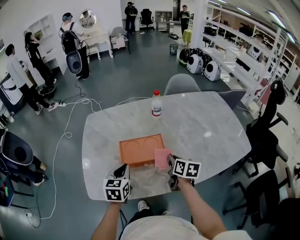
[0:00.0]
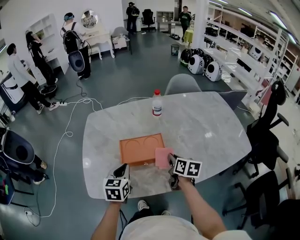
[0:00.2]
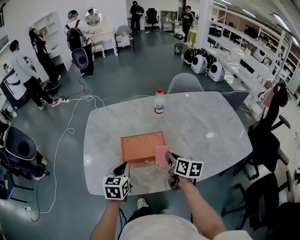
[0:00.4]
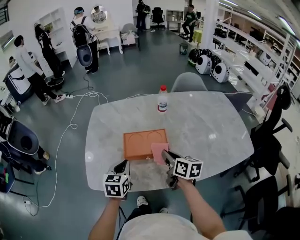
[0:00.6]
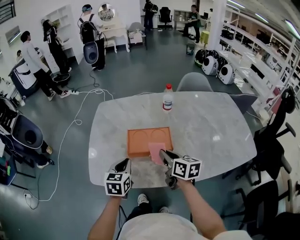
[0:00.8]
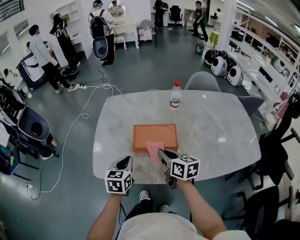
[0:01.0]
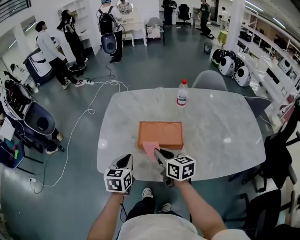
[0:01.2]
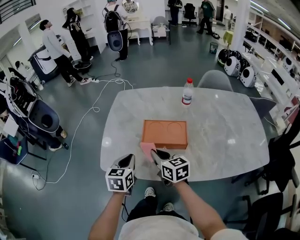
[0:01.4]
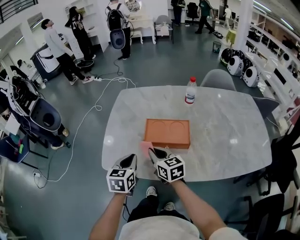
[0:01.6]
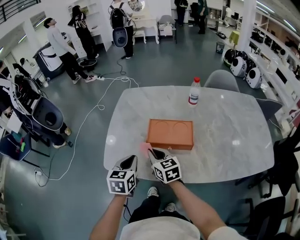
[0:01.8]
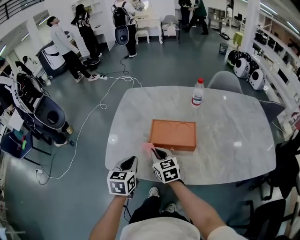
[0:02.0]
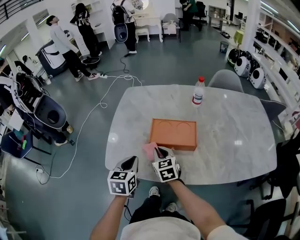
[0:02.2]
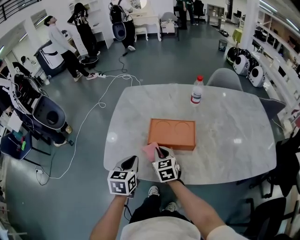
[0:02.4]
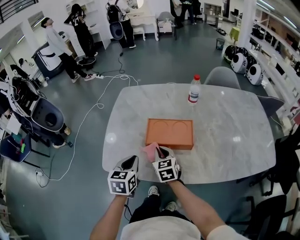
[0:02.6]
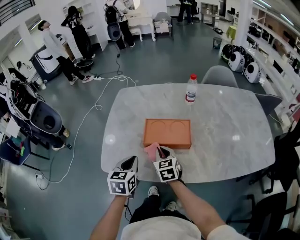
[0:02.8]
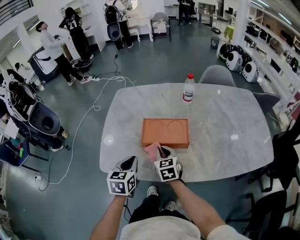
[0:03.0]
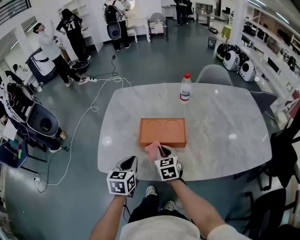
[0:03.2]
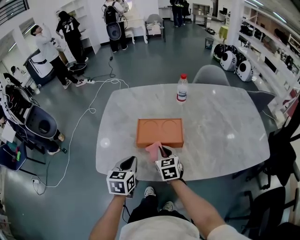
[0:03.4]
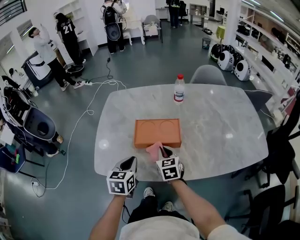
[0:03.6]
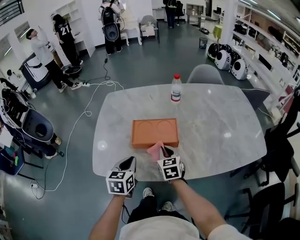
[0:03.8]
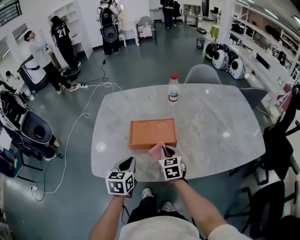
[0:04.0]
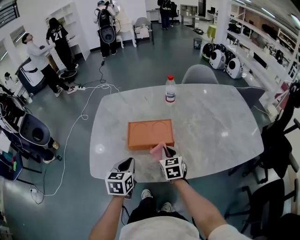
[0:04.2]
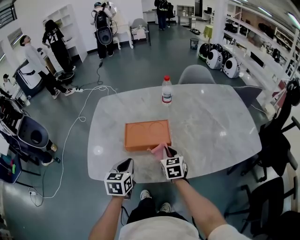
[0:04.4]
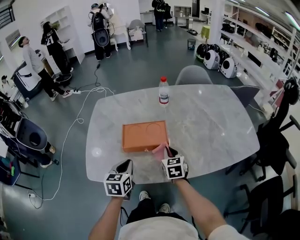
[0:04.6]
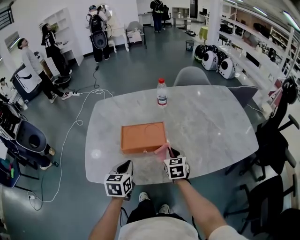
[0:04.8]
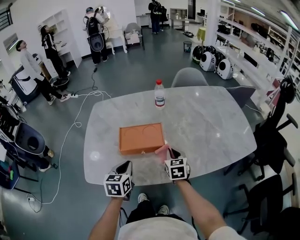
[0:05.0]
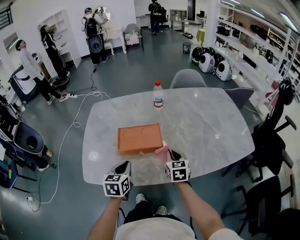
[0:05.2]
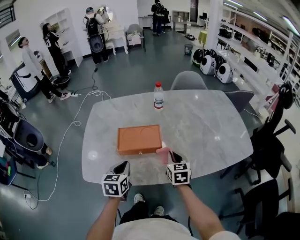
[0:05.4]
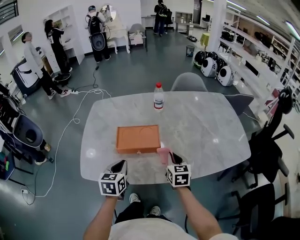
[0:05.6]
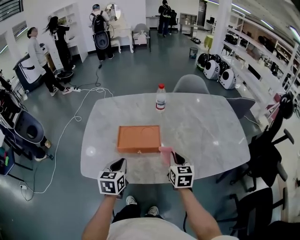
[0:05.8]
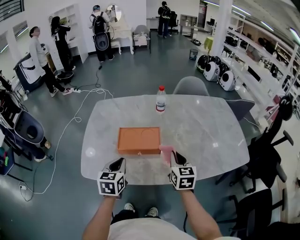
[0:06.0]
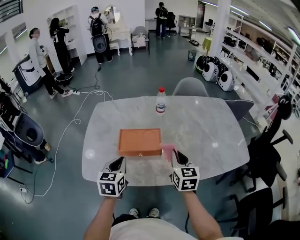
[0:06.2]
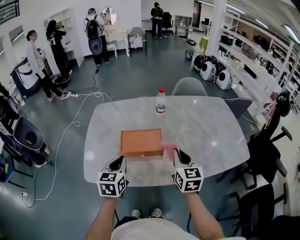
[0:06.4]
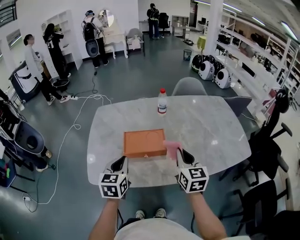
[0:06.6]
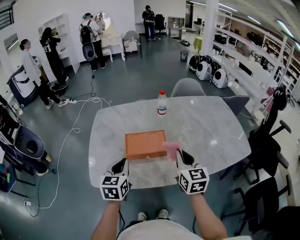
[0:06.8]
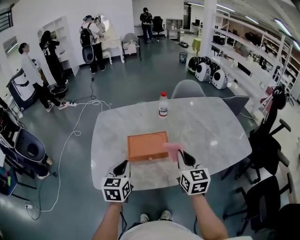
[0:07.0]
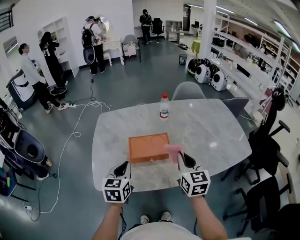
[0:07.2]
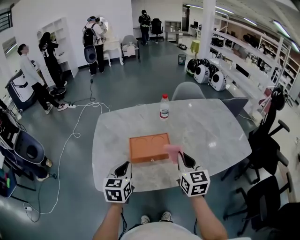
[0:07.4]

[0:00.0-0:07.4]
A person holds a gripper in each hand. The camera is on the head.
0:00.0 to 0:01.4: The right gripper goes approximately 20 cm to the left, and changes its angle by roughly 40 degrees. The left gripper moves backward and to the left, roughly 10 cm.
0:01.4 to 0:03.0: The right gripper goes approximately 5 cm downward, and turns by roughly 30 degrees.
0:03.0 to 0:04.4: The left gripper travels to the right by about 5 cm. The right gripper goes about 10 cm to the right.
0:04.4 to 0:06.0: The left gripper shifts by about 5 cm, while the right gripper shifts roughly 15 cm upward and to the right.
0:06.0 to 0:07.4: The right gripper heads upward and to the left, covering roughly 10 cm. Meanwhile the left gripper shifts about 5 cm to the left.

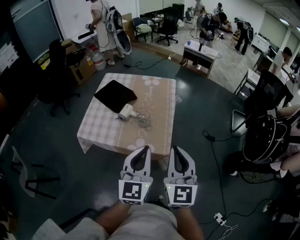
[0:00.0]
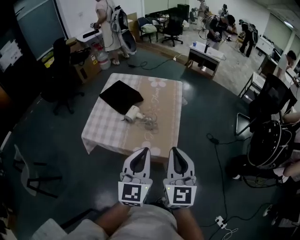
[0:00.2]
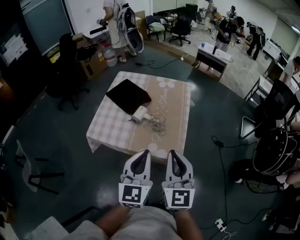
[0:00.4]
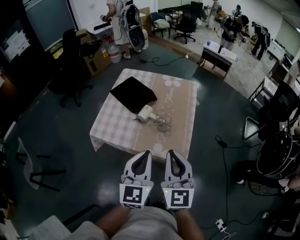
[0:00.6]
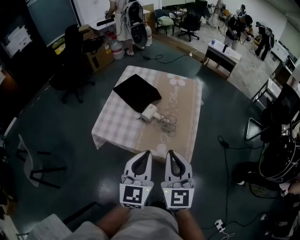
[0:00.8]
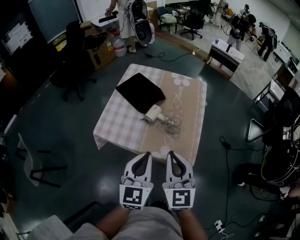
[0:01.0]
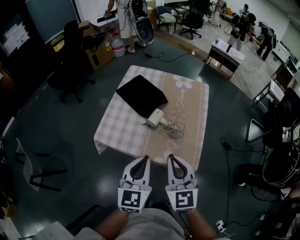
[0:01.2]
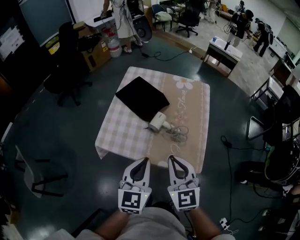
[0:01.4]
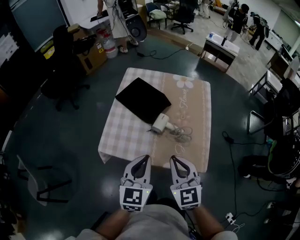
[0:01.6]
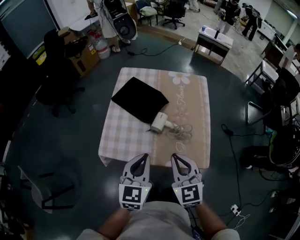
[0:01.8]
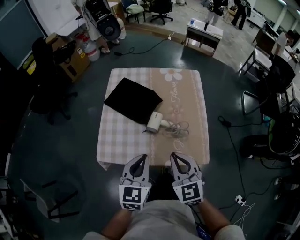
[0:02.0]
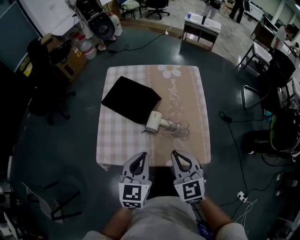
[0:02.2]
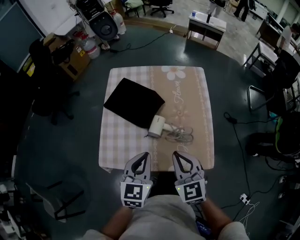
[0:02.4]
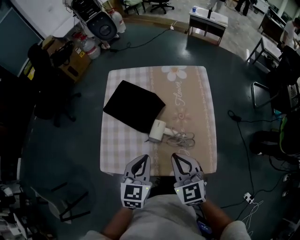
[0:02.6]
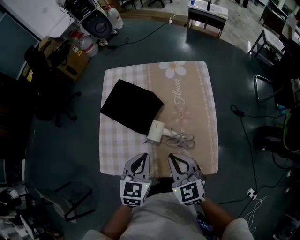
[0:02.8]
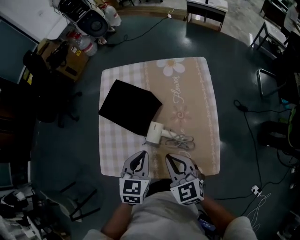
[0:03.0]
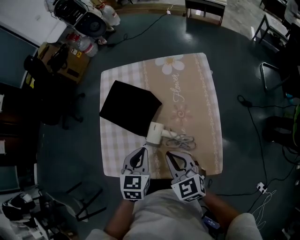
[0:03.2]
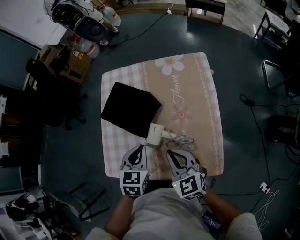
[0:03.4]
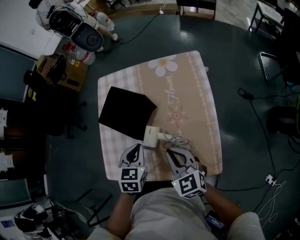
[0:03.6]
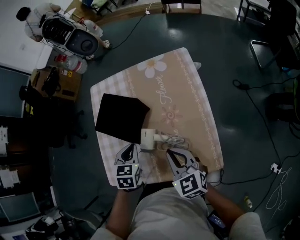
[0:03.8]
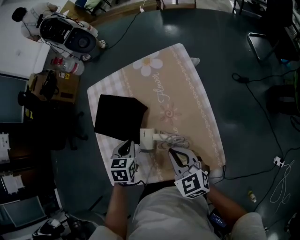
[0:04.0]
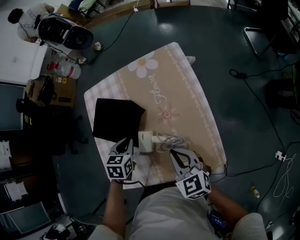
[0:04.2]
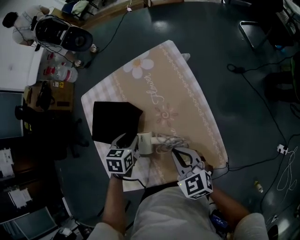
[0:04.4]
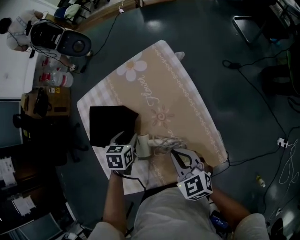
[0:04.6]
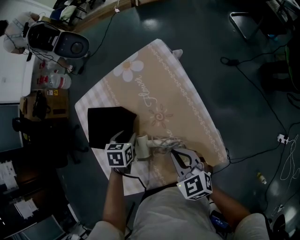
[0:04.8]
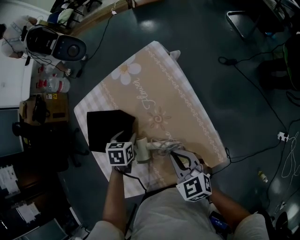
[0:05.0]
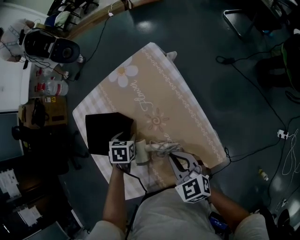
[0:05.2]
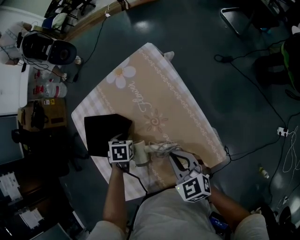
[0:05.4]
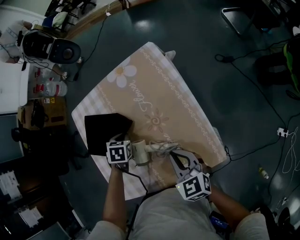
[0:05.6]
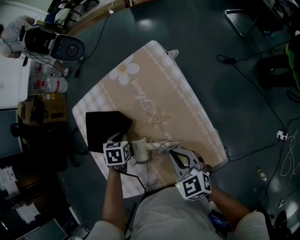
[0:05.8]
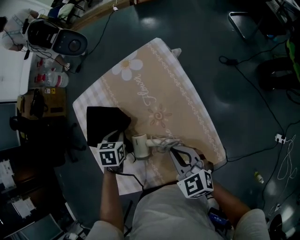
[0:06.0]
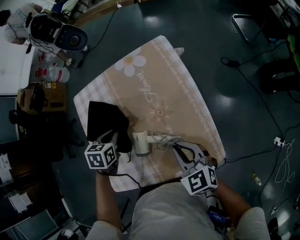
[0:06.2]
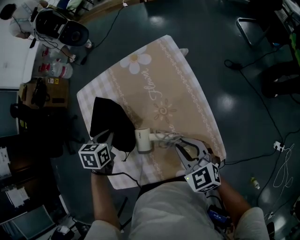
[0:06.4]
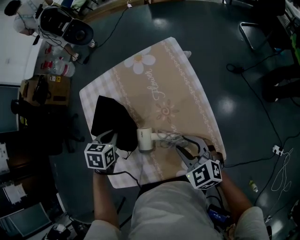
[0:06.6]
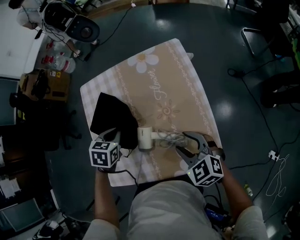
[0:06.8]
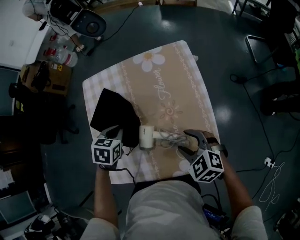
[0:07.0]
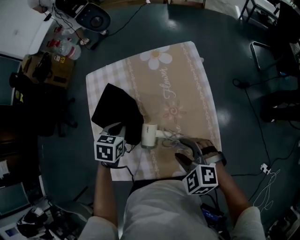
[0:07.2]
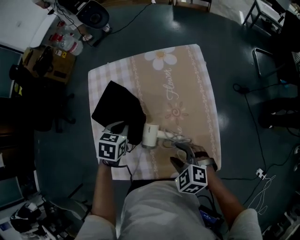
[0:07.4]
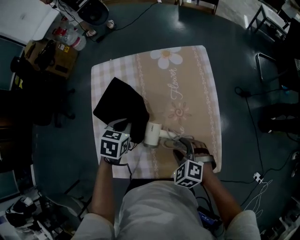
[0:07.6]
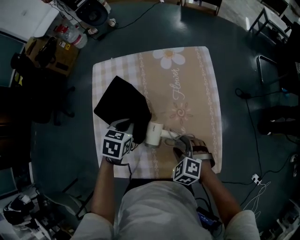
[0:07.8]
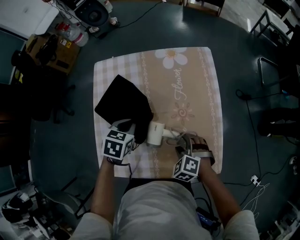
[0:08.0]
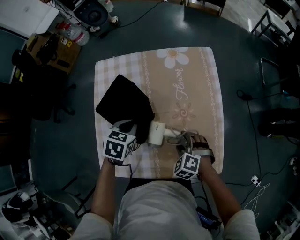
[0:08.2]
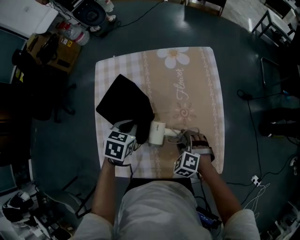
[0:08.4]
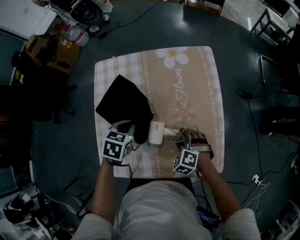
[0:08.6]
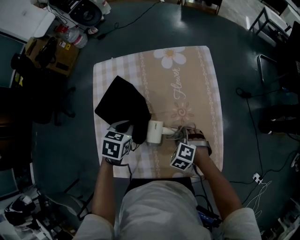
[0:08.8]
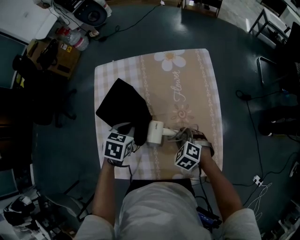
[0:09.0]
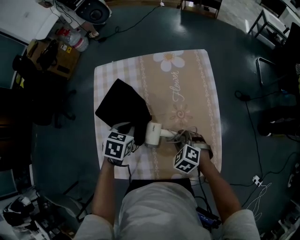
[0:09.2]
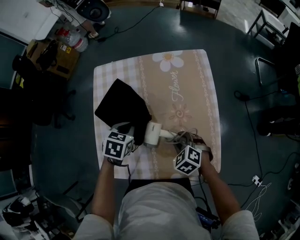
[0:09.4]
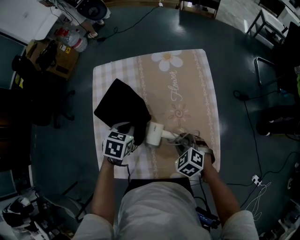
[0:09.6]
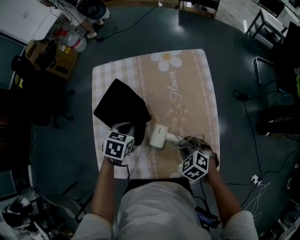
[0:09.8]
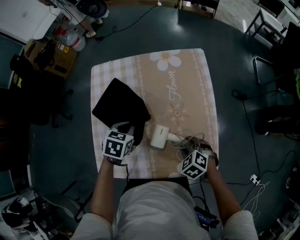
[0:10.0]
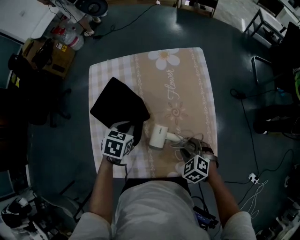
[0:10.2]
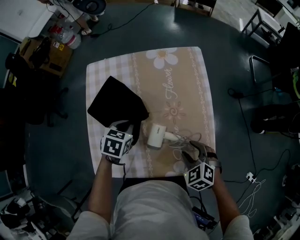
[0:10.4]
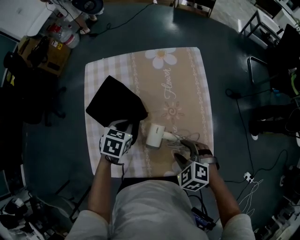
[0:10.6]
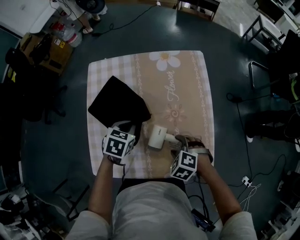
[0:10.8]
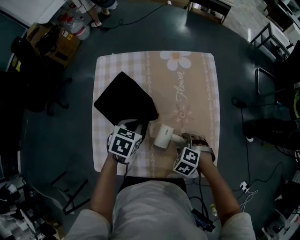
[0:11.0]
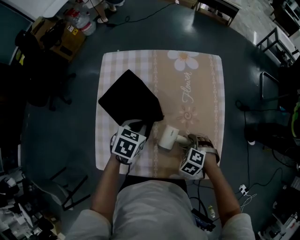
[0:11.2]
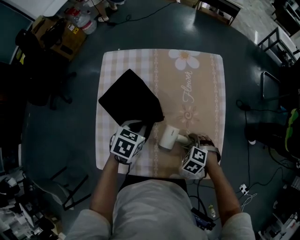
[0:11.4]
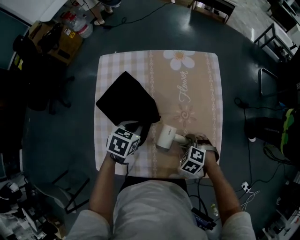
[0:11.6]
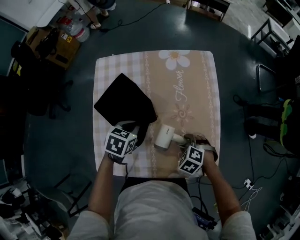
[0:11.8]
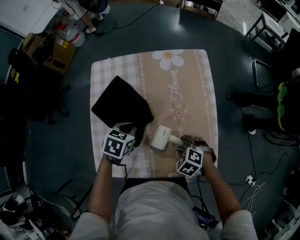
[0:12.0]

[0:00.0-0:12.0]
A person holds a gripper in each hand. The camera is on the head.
0:00.0 to 0:01.6: The left gripper shifts roughly 25 cm to the left and forward. The right gripper heads to the left, forward and downward, covering some 30 cm, and swivels approximately 20 degrees.
0:01.6 to 0:03.0: The grippers both shift forward and downward by roughly 20 cm. The left gripper changes its angle by roughly 20 degrees.
0:03.0 to 0:04.4: The left gripper is displaced forward and downward by about 15 cm, changes its angle by approximately 30 degrees, and opens; the right gripper moves to the right and downward, some 10 cm.
0:04.4 to 0:06.0: The left gripper closes its fingers.
0:06.0 to 0:07.6: The left gripper moves approximately 5 cm, while the right gripper is displaced downward and to the left by about 10 cm, swivels approximately 50 degrees, and opens.
0:07.6 to 0:09.0: The right gripper travels downward by roughly 5 cm.
0:09.0 to 0:10.4: The right gripper moves upward, backward and to the right, roughly 10 cm.
0:10.4 to 0:12.0: The right gripper shifts about 5 cm downward.

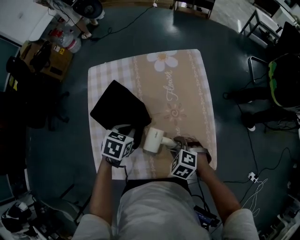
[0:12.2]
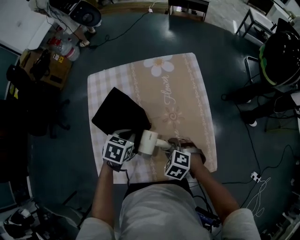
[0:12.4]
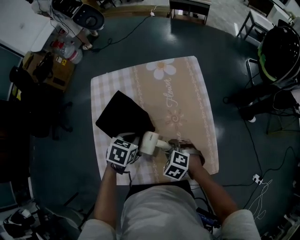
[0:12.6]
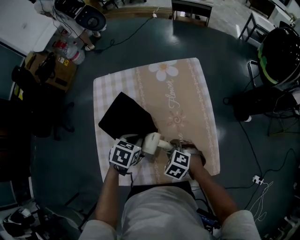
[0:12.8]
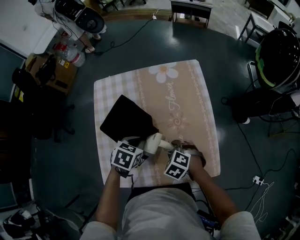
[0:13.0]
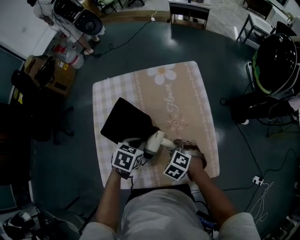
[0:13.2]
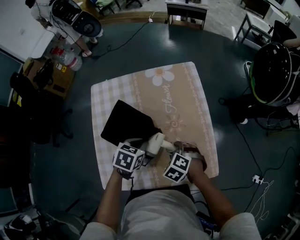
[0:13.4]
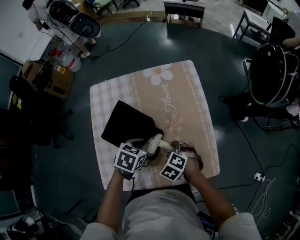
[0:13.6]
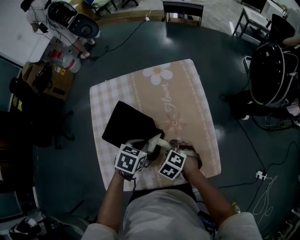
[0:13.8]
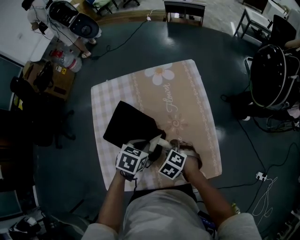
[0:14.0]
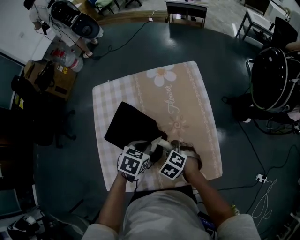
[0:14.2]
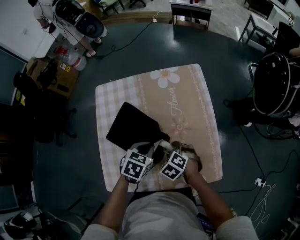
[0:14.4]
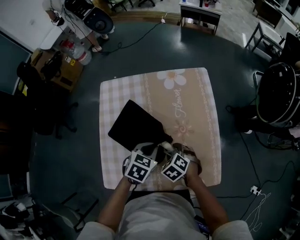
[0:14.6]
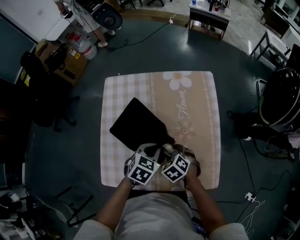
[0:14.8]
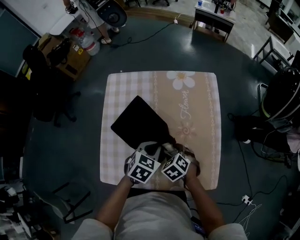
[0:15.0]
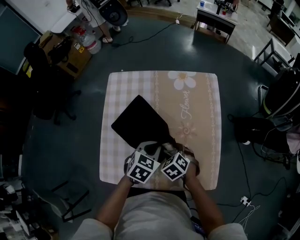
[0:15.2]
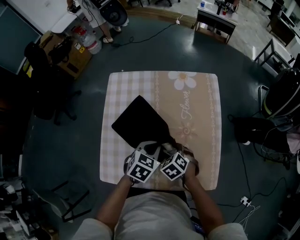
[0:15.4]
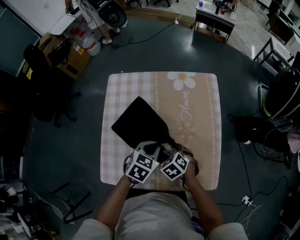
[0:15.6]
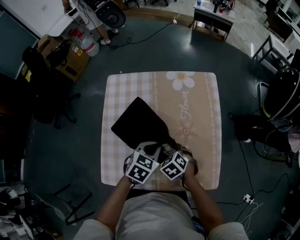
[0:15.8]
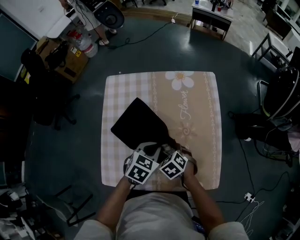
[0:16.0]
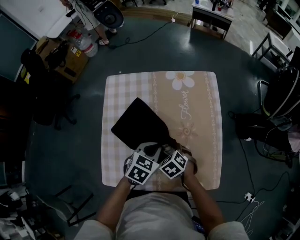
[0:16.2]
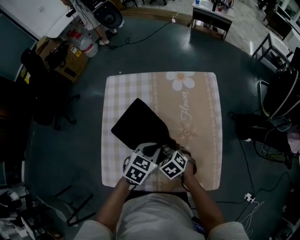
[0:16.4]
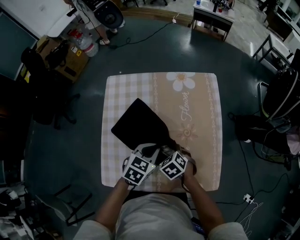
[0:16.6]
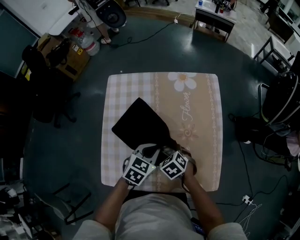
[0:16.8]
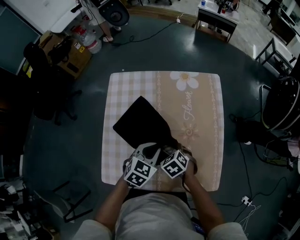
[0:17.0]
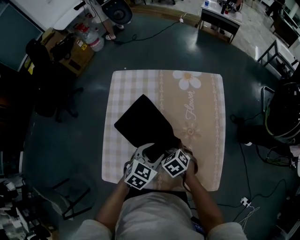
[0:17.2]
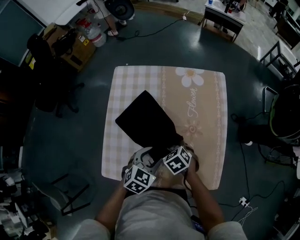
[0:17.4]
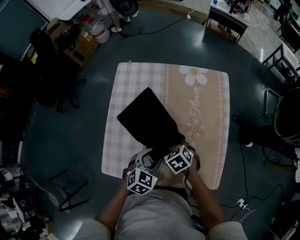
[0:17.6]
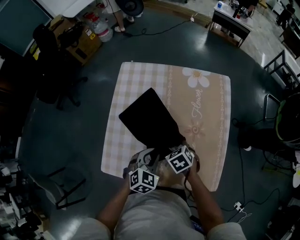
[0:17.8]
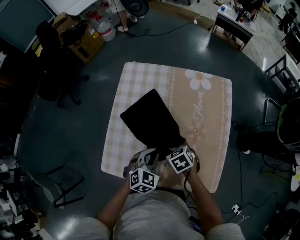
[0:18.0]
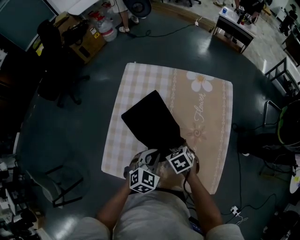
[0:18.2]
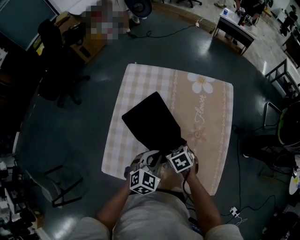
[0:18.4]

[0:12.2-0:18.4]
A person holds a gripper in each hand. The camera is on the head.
0:12.2 to 0:13.8: The left gripper moves to the right, some 5 cm.
0:13.8 to 0:15.4: The grippers move only a little.
0:15.4 to 0:16.8: There are only small adjustments of the grippers.
0:16.8 to 0:18.4: The left gripper moves about 5 cm, and opens, then closes once more.
